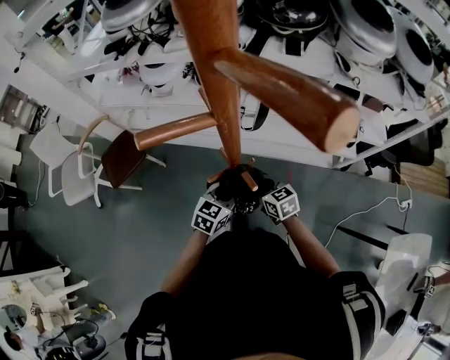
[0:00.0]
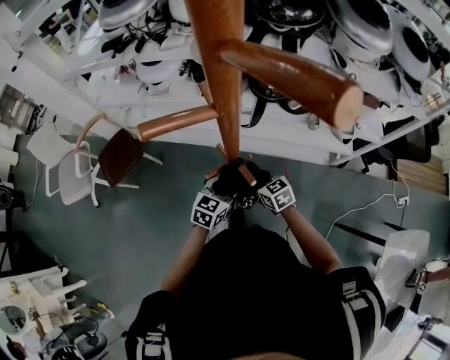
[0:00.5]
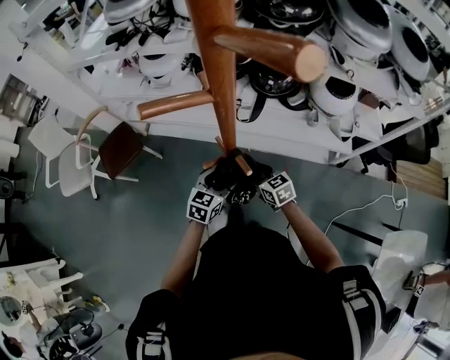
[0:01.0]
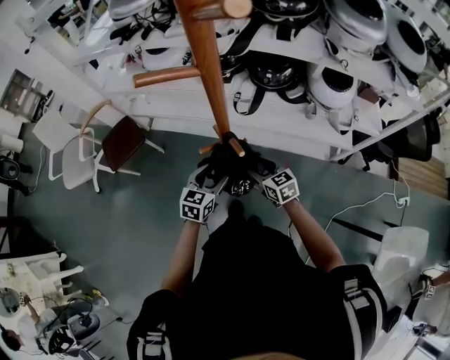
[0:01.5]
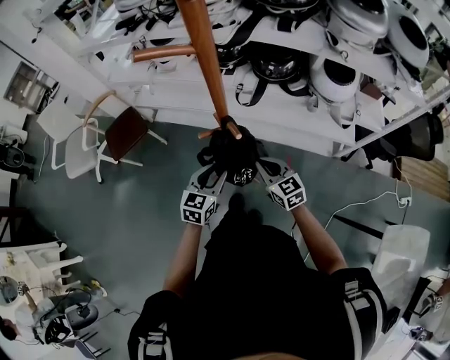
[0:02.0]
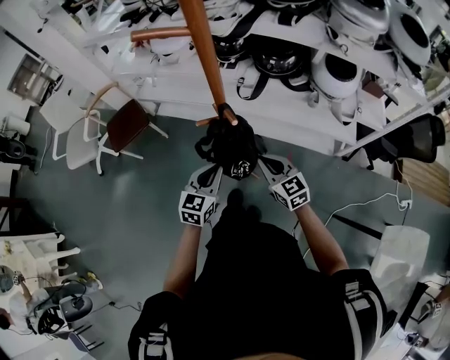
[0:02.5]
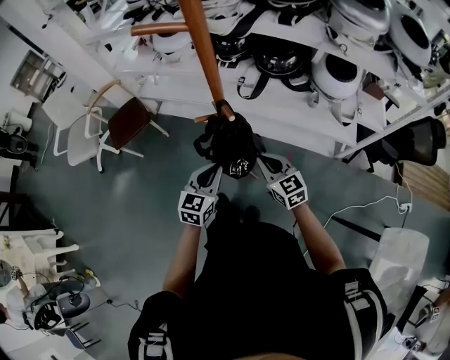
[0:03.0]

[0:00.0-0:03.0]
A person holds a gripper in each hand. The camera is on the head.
0:00.0 to 0:01.5: Both grippers travel together backward, approximately 5 cm. The right gripper opens up. Meanwhile the left gripper opens its fingers.
0:01.5 to 0:03.0: The grippers both shift backward by some 10 cm. The right gripper closes up, while the left gripper closes up.

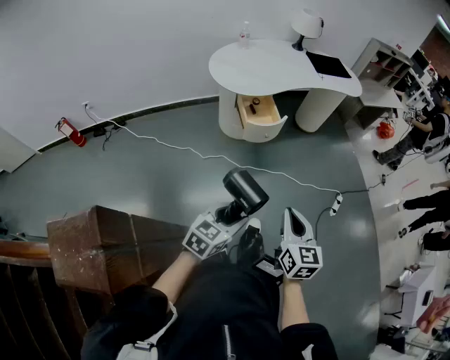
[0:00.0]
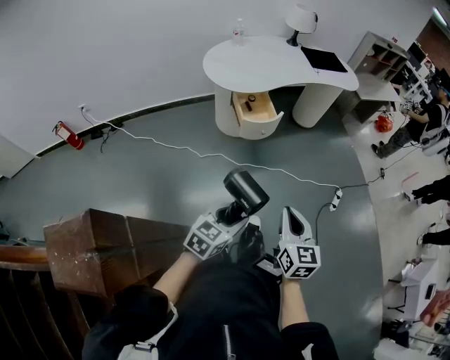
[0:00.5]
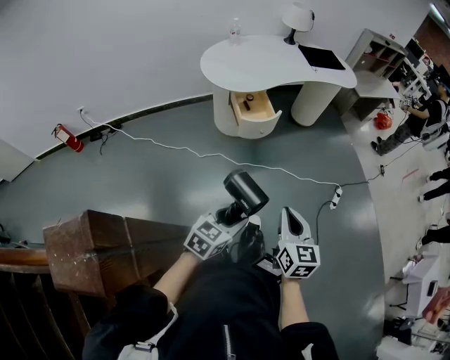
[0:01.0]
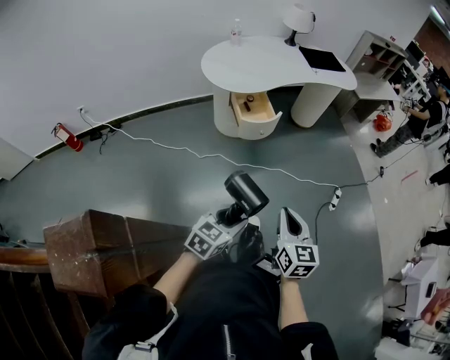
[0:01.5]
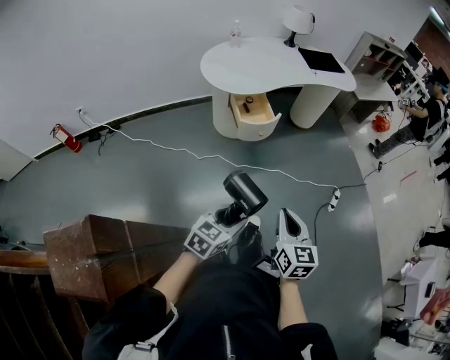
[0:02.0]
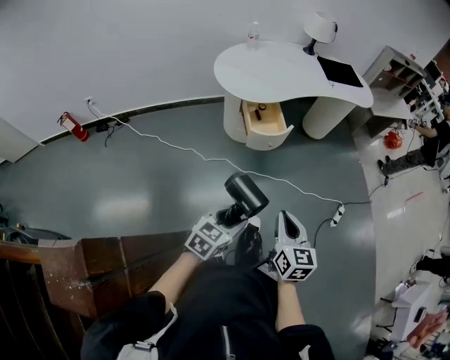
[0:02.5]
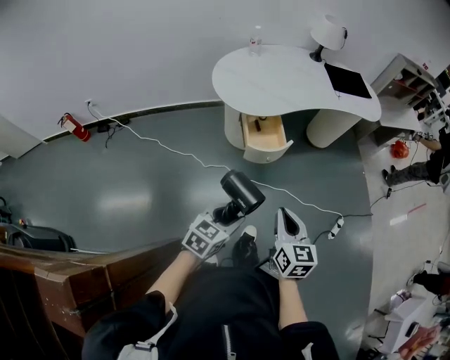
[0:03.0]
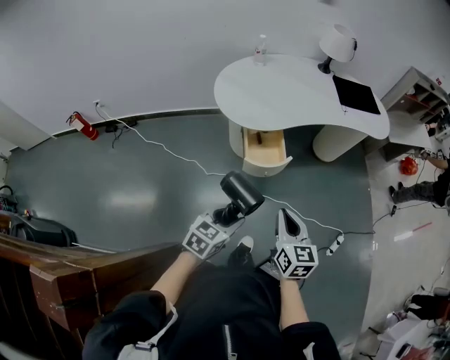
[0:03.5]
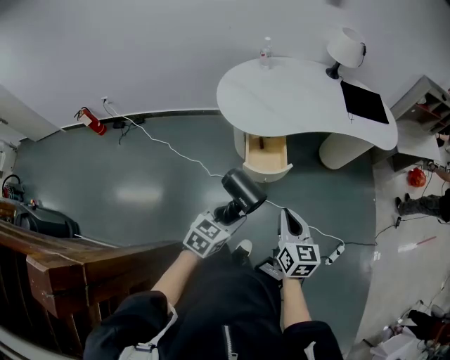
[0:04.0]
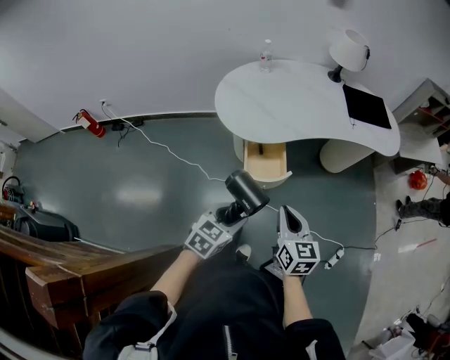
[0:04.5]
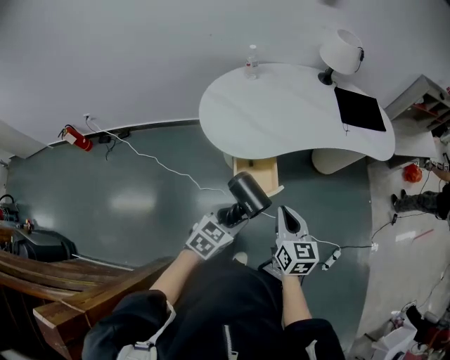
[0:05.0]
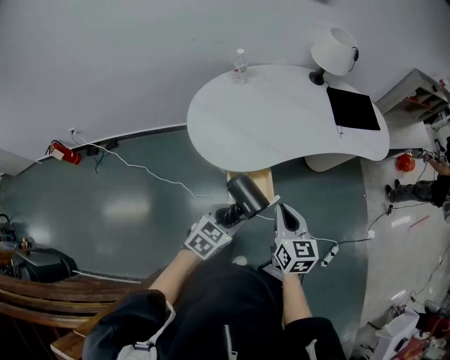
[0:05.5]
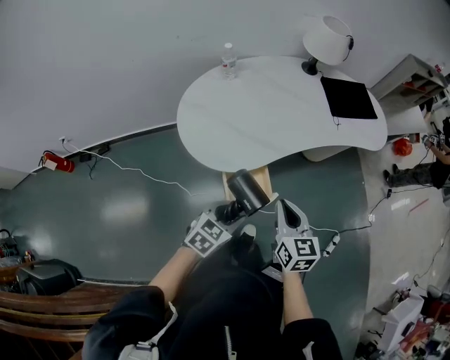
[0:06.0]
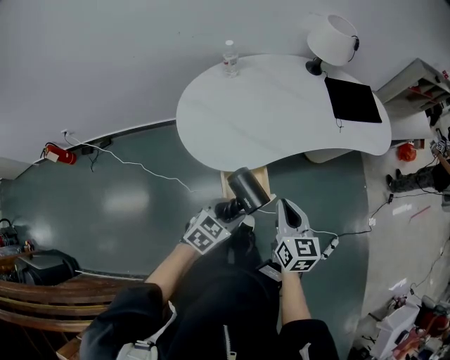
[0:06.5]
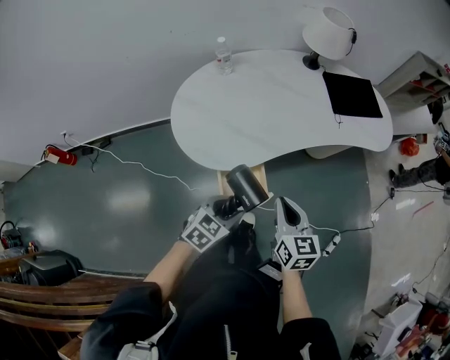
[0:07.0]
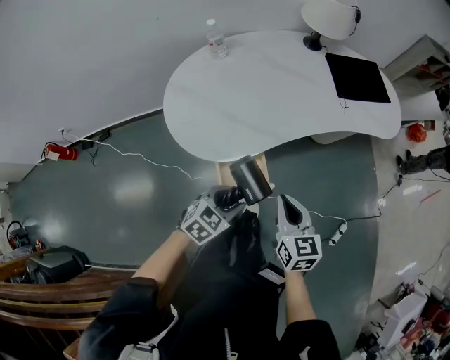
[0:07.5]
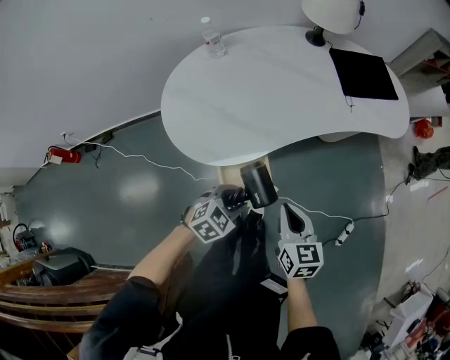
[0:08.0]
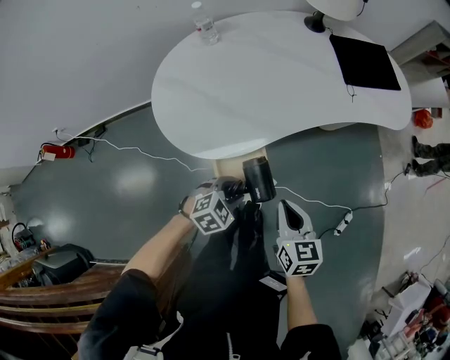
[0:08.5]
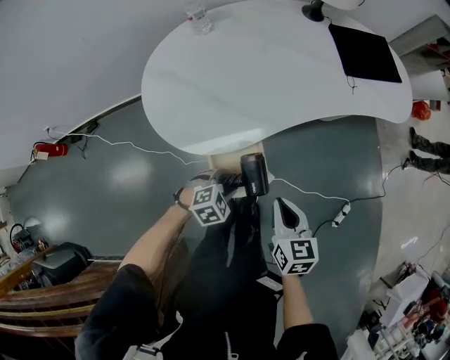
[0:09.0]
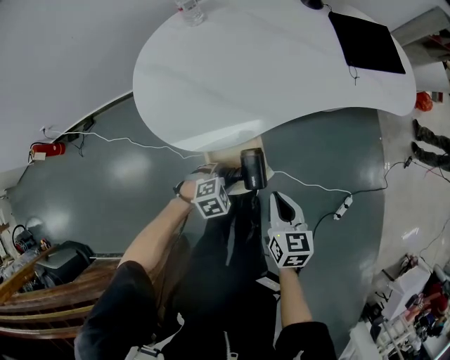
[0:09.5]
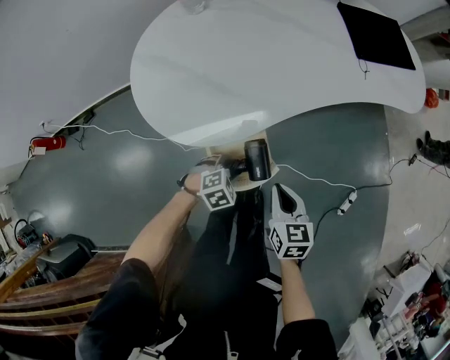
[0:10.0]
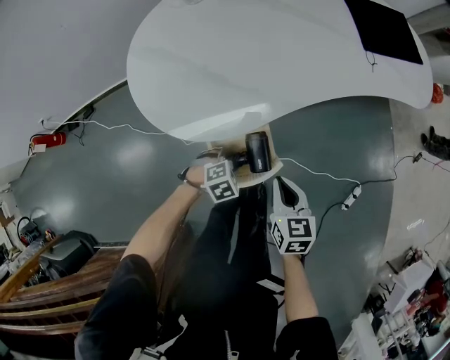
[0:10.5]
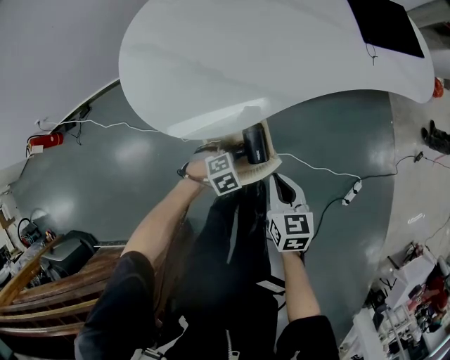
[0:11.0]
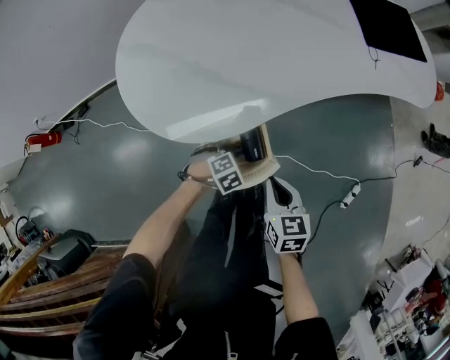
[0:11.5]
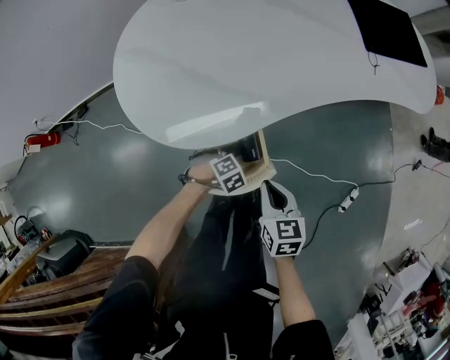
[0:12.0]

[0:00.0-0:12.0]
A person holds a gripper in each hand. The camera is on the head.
0:00.0 to 0:02.0: The grippers stay close to where they were, moving slightly.
0:02.0 to 0:04.0: Both grippers travel together forward, about 30 cm.
0:04.0 to 0:06.0: Both grippers move forward, roughly 20 cm.
0:06.0 to 0:08.0: The left gripper shifts approximately 10 cm downward and forward, while the right gripper heads downward and to the right, covering some 10 cm.
0:08.0 to 0:10.0: The grippers both shift downward by about 15 cm. The left gripper changes its angle by some 20 degrees.
0:10.0 to 0:12.0: The left gripper shifts approximately 10 cm downward, and swivels approximately 20 degrees; the right gripper shifts some 5 cm downward.

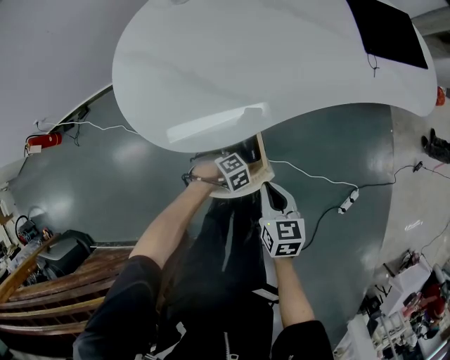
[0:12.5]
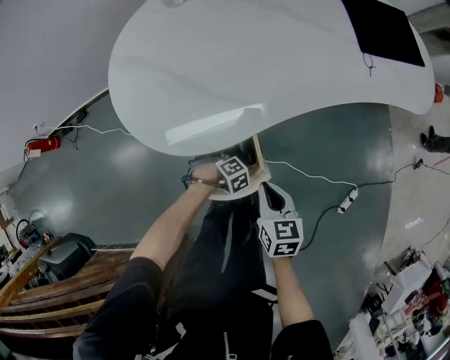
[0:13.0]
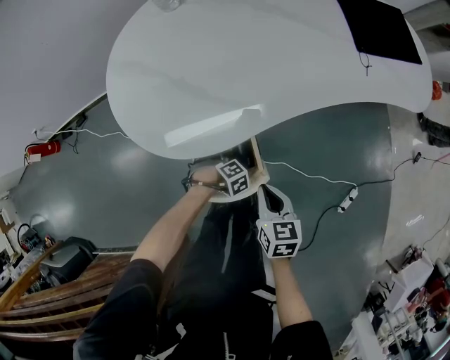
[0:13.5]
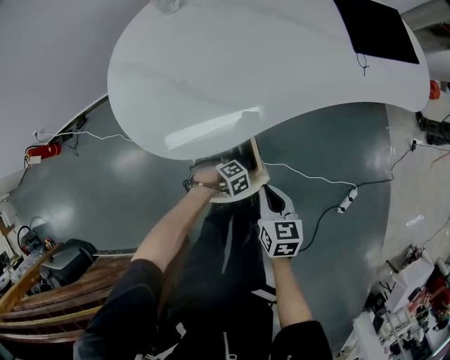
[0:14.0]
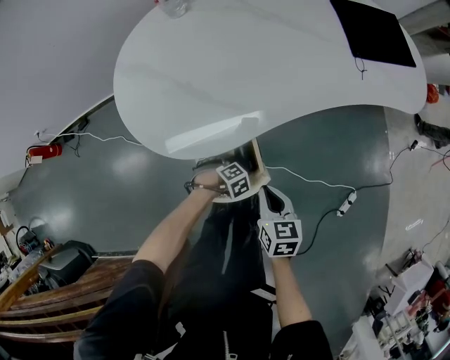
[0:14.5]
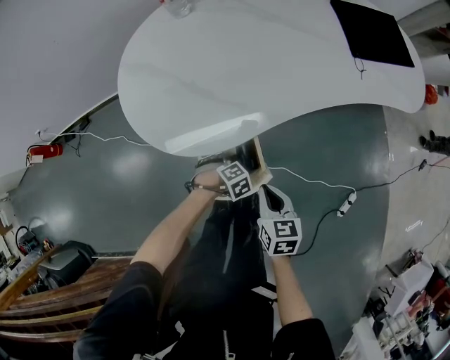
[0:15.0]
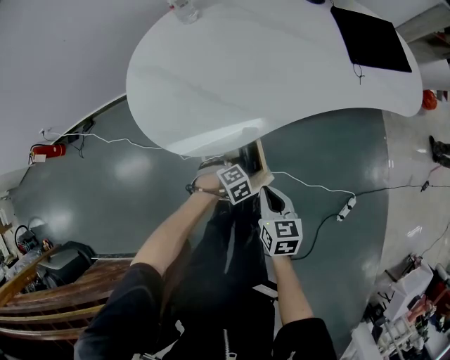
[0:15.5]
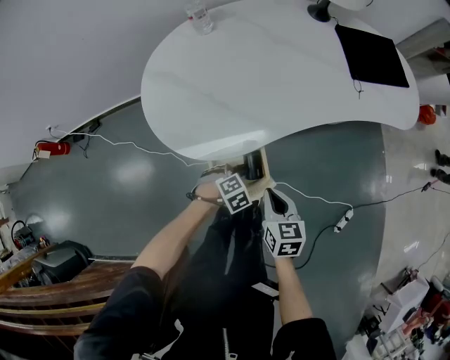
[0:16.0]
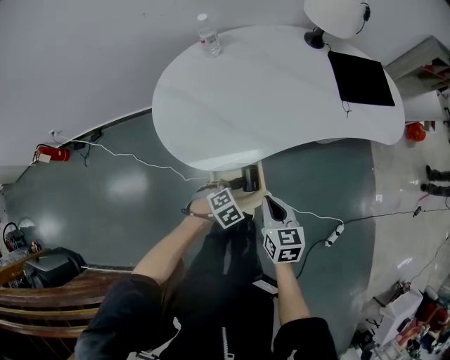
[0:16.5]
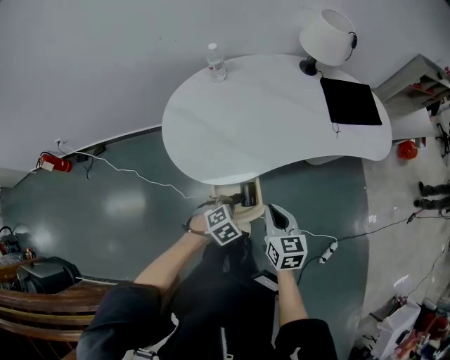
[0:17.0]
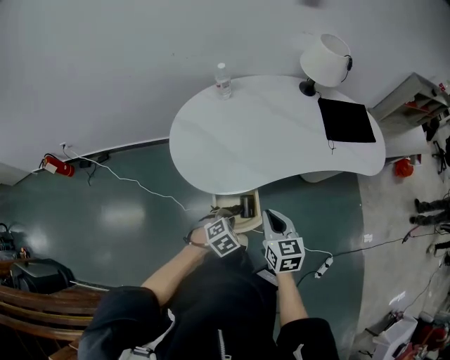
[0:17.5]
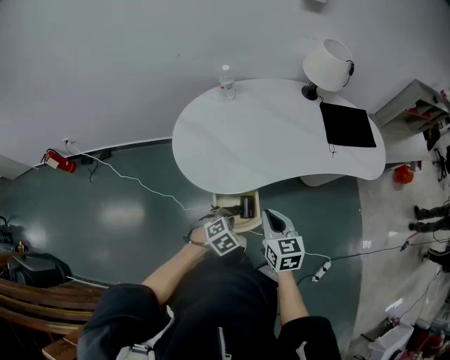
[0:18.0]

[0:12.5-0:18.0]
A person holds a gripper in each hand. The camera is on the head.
0:12.5 to 0:14.5: There are only small adjustments of the grippers.
0:14.5 to 0:16.0: The left gripper heads upward, covering about 10 cm, and closes.
0:16.0 to 0:18.0: The two grippers go some 15 cm upward. The left gripper rotates roughly 20 degrees.

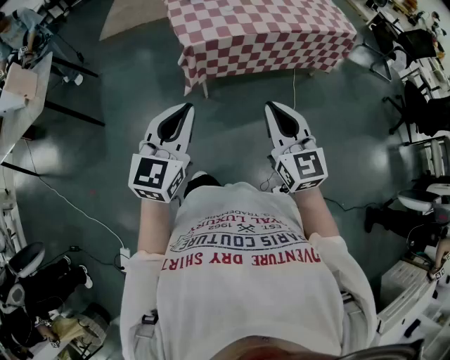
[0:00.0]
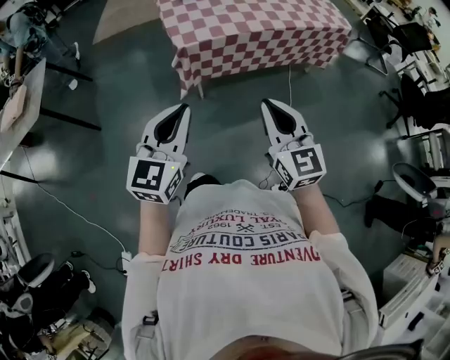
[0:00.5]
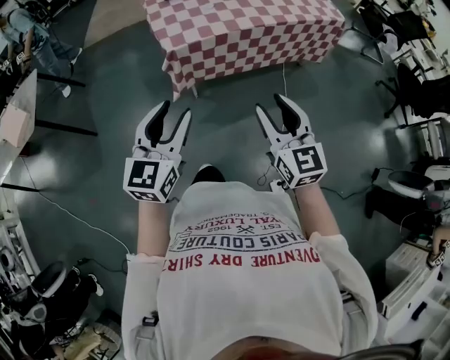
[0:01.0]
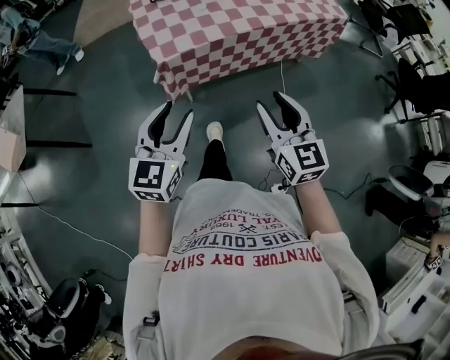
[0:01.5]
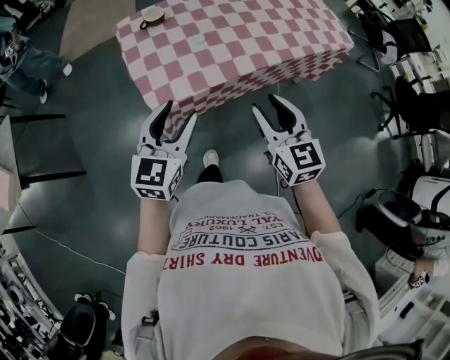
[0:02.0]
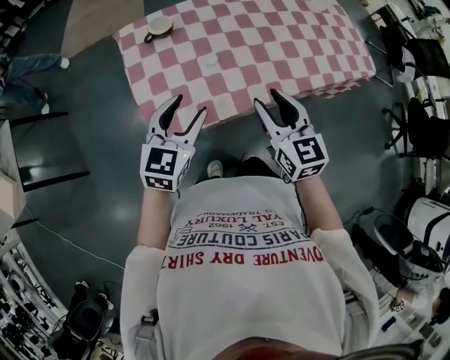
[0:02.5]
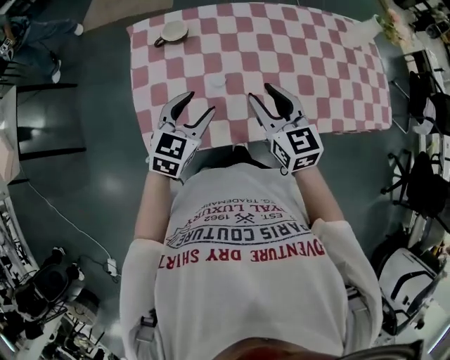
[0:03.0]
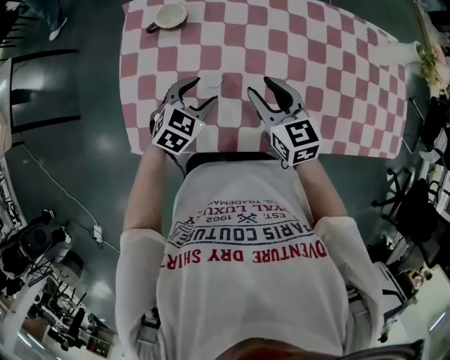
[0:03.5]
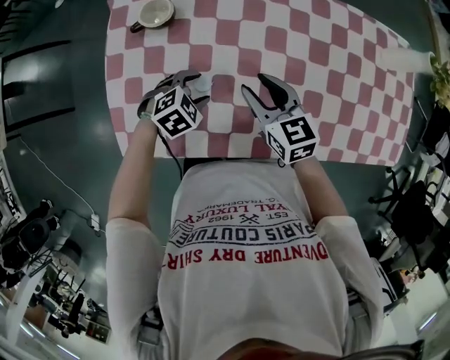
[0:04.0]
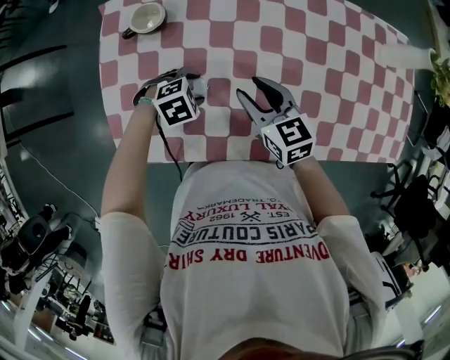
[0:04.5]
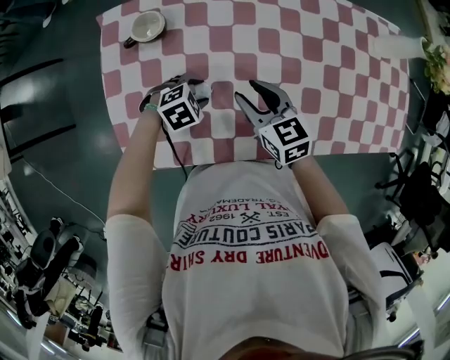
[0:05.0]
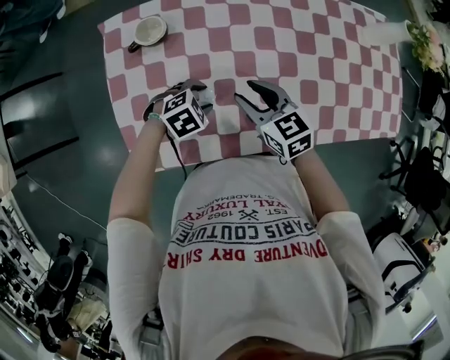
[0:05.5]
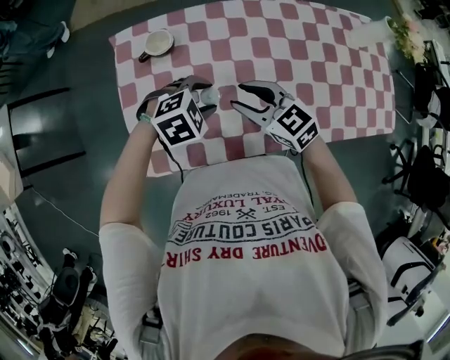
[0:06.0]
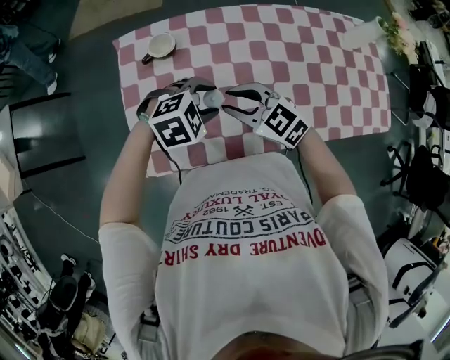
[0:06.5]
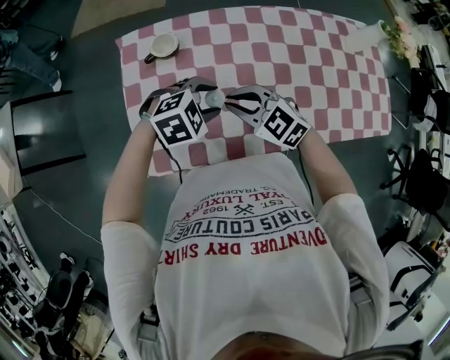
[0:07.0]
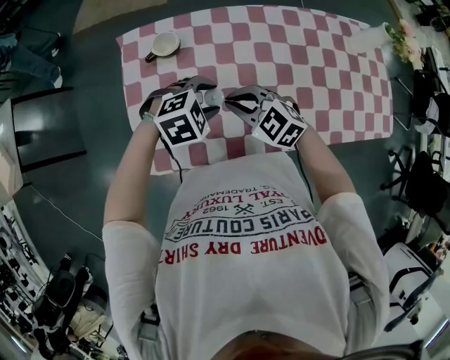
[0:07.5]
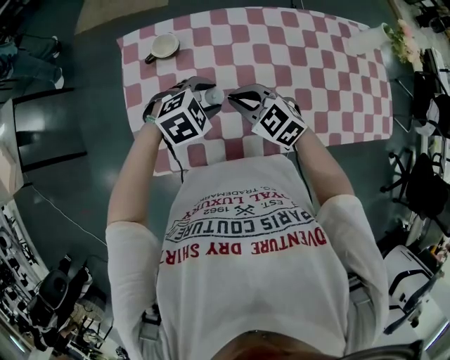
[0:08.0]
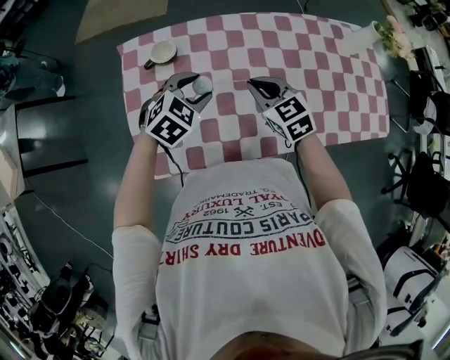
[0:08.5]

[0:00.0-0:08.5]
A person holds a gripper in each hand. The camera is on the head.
0:00.0 to 0:02.0: The two grippers go about 35 cm forward. The right gripper opens up; the left gripper opens.
0:02.0 to 0:04.0: The grippers both shift forward and downward by roughly 50 cm. The left gripper points its fingers about 50 degrees further downward. Meanwhile the right gripper swivels some 40 degrees.
0:04.0 to 0:06.5: The left gripper goes roughly 15 cm upward, and rotates roughly 30 degrees; the right gripper changes place by approximately 15 cm, and swivels approximately 30 degrees.
0:06.5 to 0:08.5: The right gripper changes place by about 10 cm, swivels roughly 20 degrees, and closes, while the left gripper ends up about 5 cm from where it was, and turns by approximately 30 degrees.
